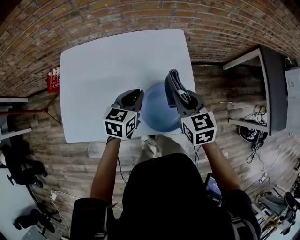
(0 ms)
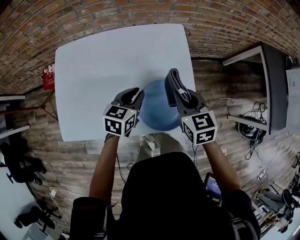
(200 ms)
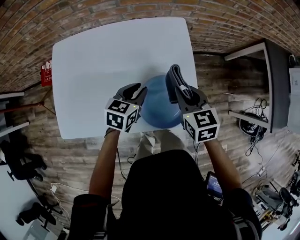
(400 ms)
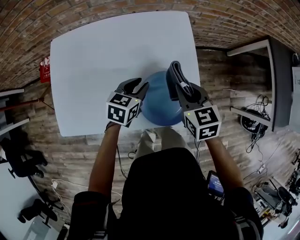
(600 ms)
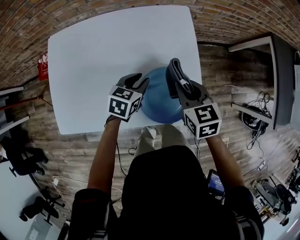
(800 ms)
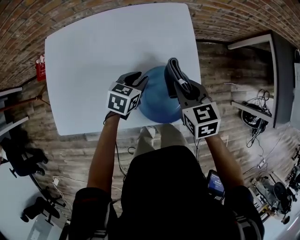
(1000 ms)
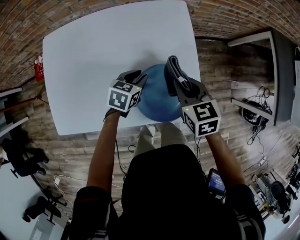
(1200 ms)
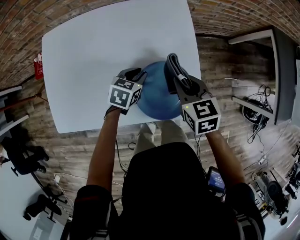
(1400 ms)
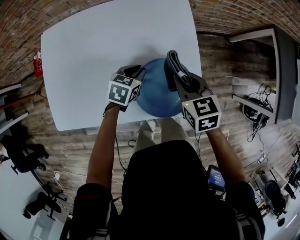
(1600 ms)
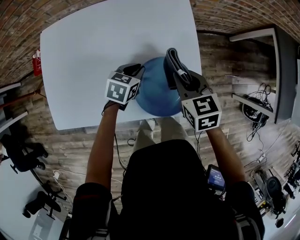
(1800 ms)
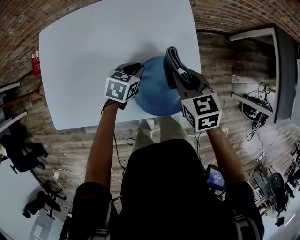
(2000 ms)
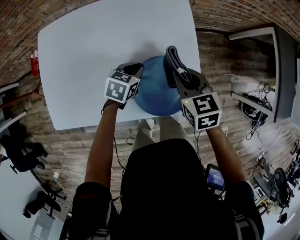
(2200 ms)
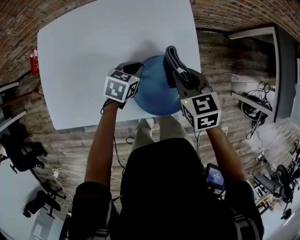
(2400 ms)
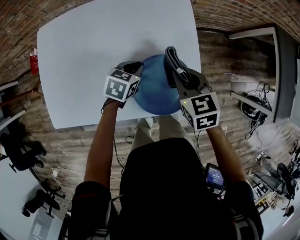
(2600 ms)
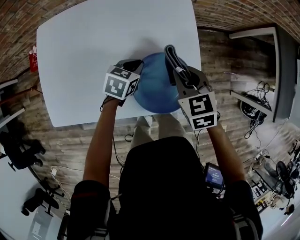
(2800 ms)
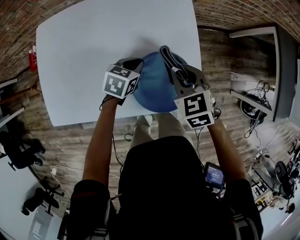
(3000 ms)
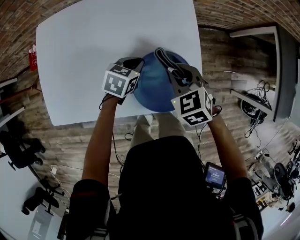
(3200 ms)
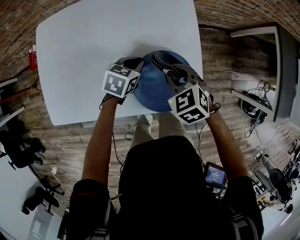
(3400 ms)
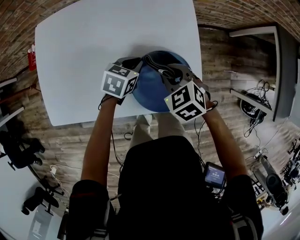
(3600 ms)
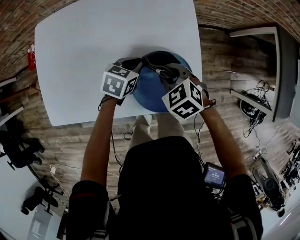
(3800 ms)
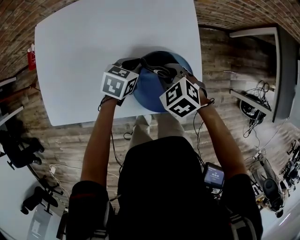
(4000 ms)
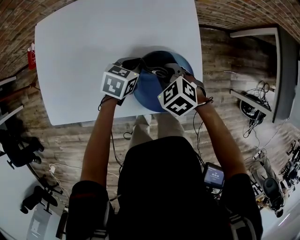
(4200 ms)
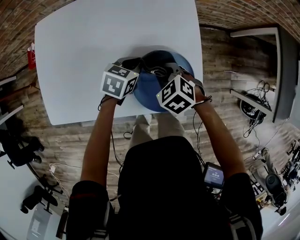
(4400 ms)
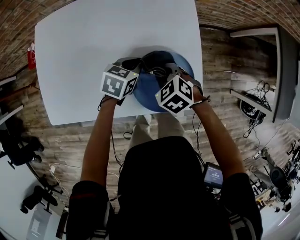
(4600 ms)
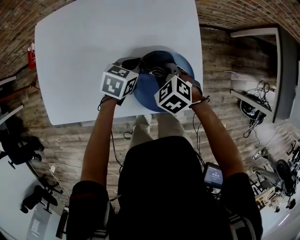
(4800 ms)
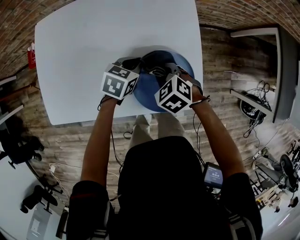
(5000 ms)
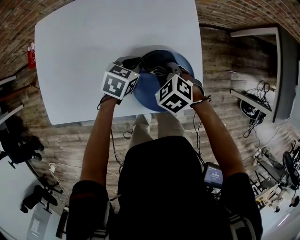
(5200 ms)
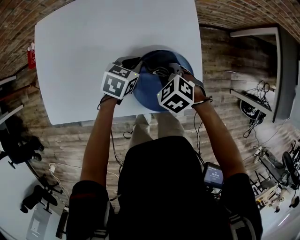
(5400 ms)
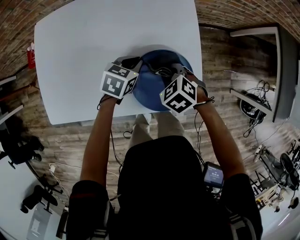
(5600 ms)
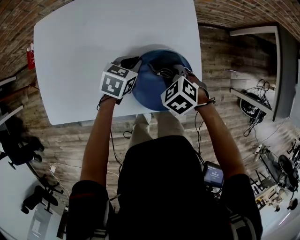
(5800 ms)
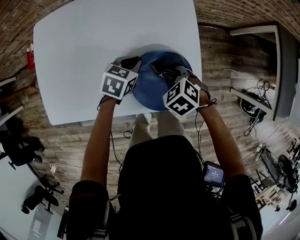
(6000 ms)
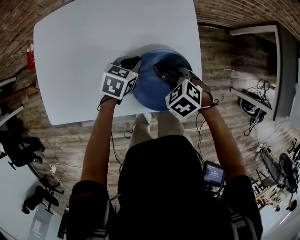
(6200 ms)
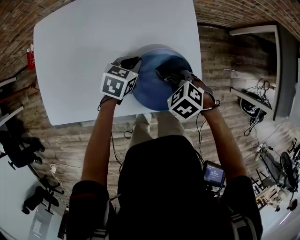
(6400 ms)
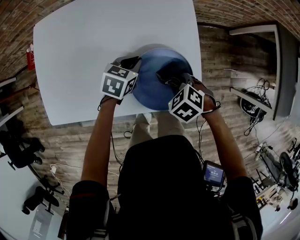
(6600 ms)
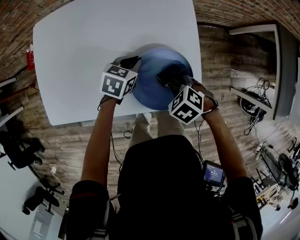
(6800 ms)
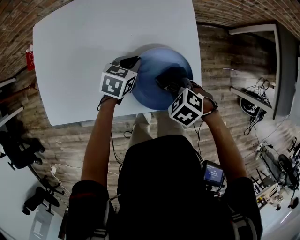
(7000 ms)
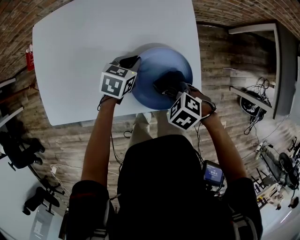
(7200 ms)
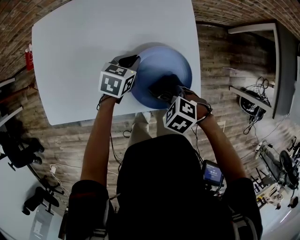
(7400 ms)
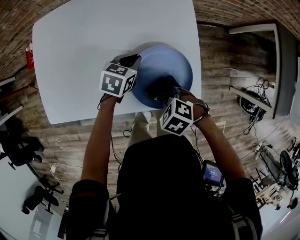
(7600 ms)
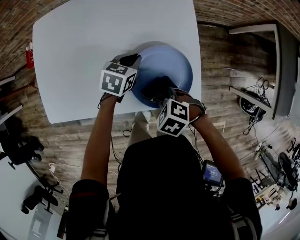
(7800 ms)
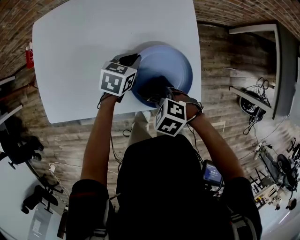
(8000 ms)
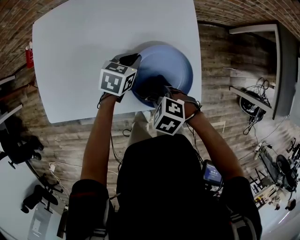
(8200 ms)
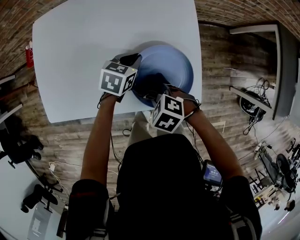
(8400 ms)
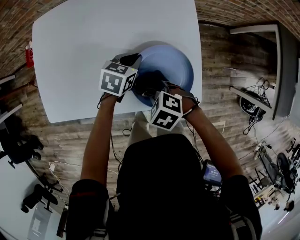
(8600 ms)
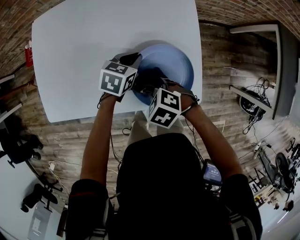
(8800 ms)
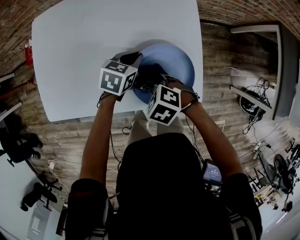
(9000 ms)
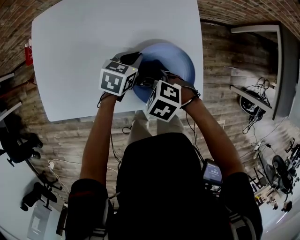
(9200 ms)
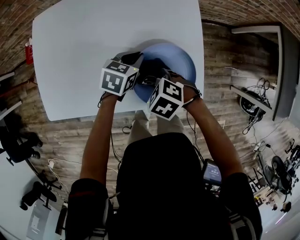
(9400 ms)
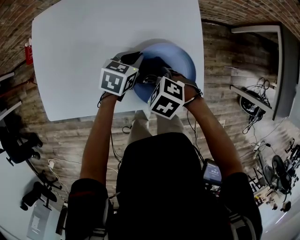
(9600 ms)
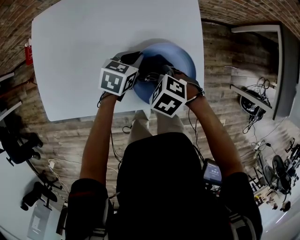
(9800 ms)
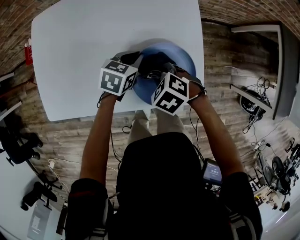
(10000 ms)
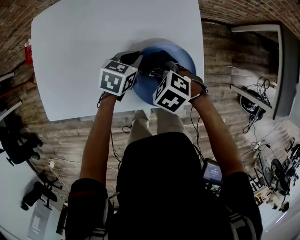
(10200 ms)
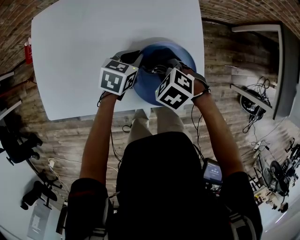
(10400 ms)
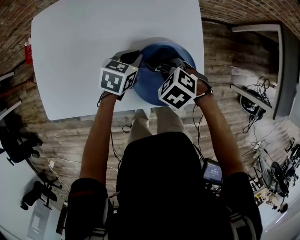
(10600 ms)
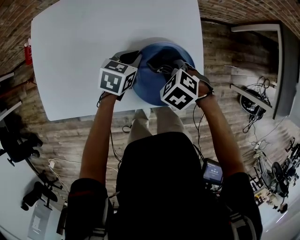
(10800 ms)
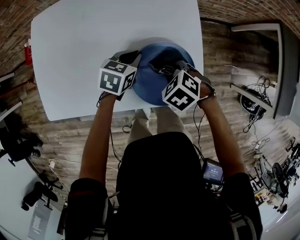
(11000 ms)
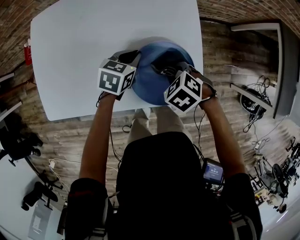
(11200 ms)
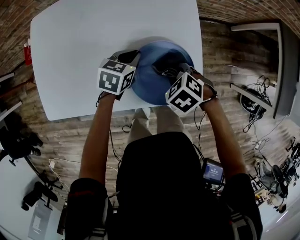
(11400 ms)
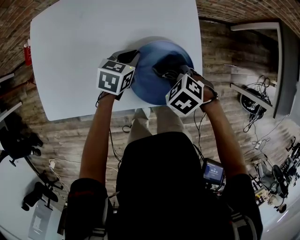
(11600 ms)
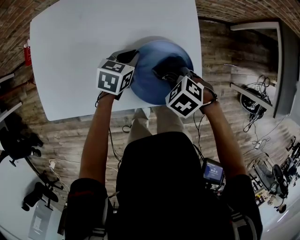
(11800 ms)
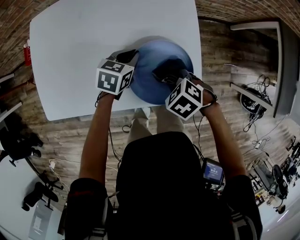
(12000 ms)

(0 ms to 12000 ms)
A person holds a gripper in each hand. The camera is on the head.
0 ms - 1600 ms: The right gripper moves downward, roughly 10 cm. Meanwhile the left gripper heads downward, covering about 15 cm.
1600 ms - 3000 ms: There are only small adjustments of the grippers.
3000 ms - 4400 ms: The right gripper shifts about 10 cm downward and to the left, and swivels about 20 degrees.
4400 ms - 6000 ms: The grippers make only small movements.
6000 ms - 7600 ms: The right gripper changes place by roughly 10 cm.
7600 ms - 9000 ms: The right gripper shifts by some 5 cm.
9000 ms - 10400 ms: The right gripper changes place by about 5 cm.
10400 ms - 12000 ms: The right gripper shifts by roughly 5 cm.

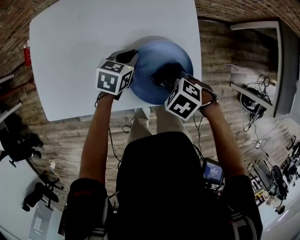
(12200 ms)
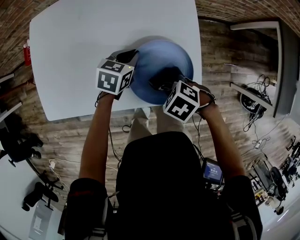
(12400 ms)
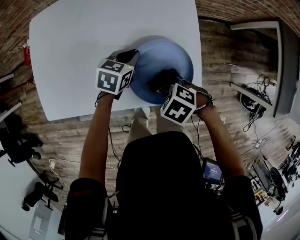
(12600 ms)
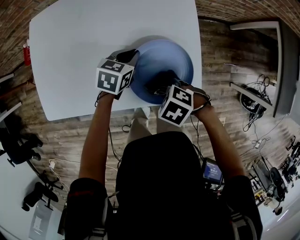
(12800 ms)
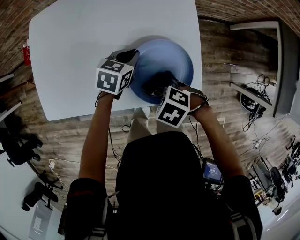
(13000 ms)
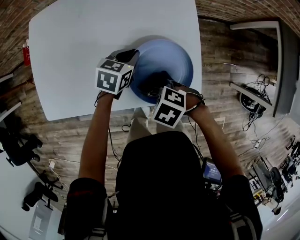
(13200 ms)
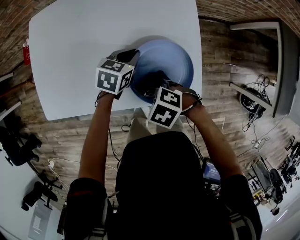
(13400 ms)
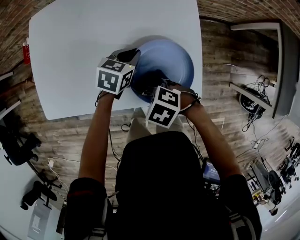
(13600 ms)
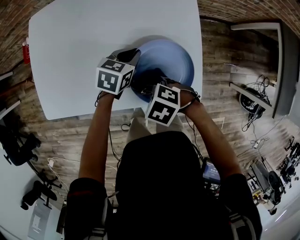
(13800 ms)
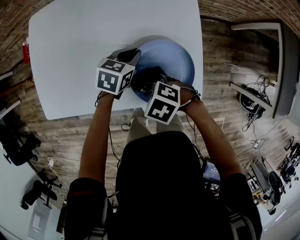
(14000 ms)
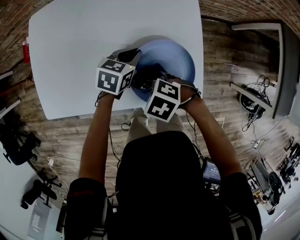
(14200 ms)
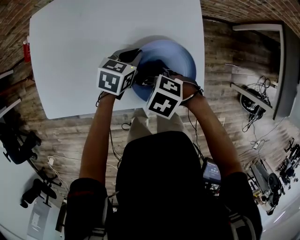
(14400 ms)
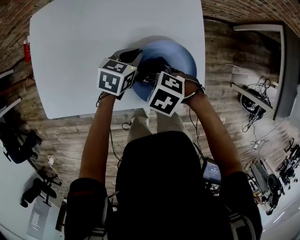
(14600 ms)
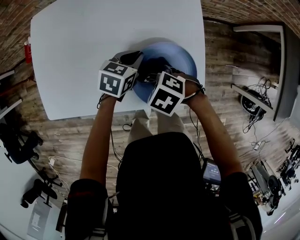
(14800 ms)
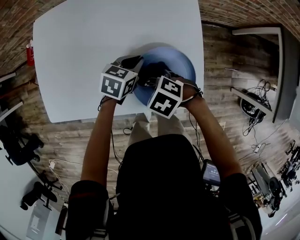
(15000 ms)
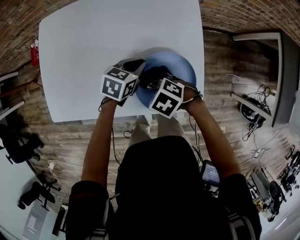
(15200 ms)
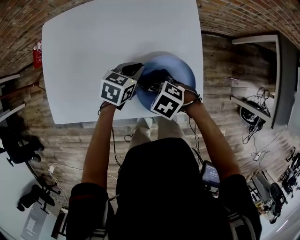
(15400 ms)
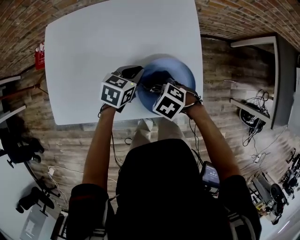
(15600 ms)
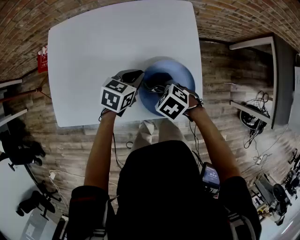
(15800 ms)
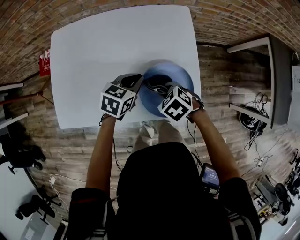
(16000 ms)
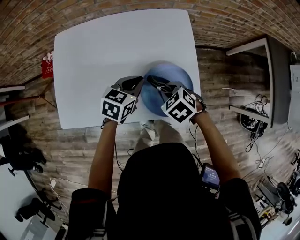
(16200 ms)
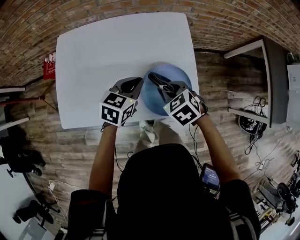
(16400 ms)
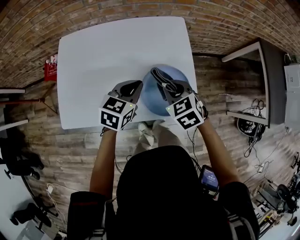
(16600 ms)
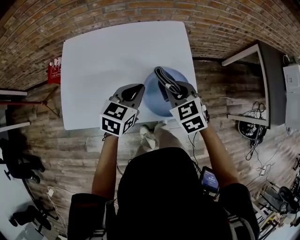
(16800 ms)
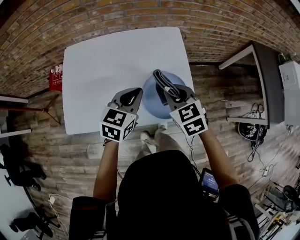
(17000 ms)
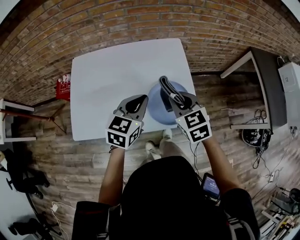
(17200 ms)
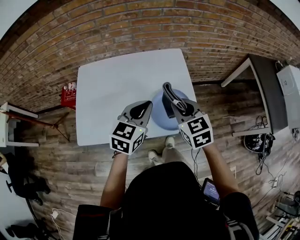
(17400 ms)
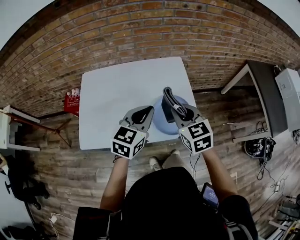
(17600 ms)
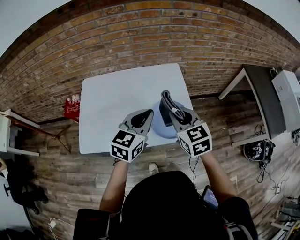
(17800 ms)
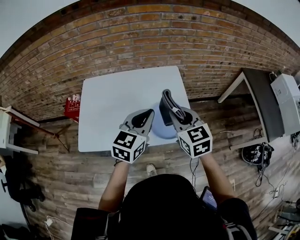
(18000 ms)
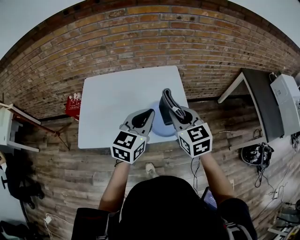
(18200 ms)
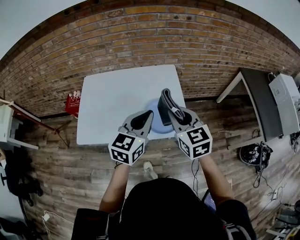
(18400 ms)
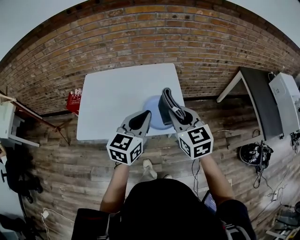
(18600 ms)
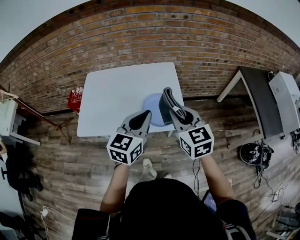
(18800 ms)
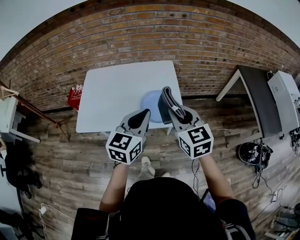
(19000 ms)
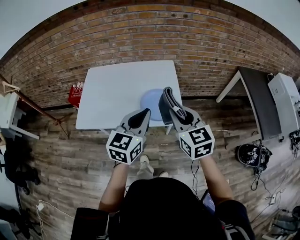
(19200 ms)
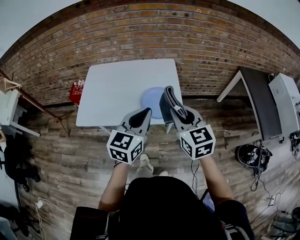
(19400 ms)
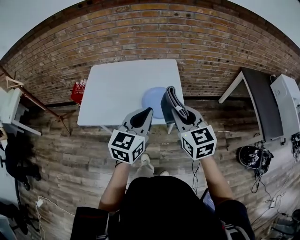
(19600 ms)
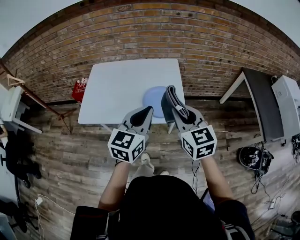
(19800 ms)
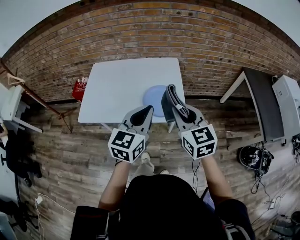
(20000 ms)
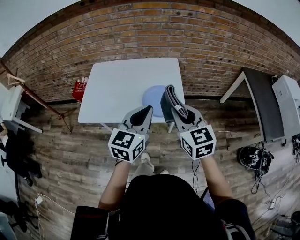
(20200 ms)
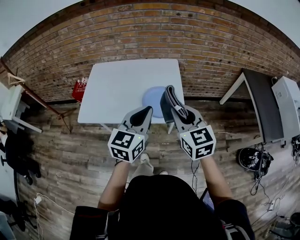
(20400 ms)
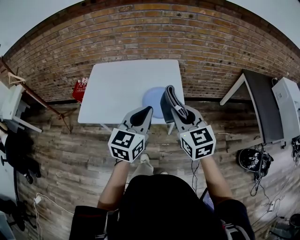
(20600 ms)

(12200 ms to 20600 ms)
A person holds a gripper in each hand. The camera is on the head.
12200 ms - 13600 ms: The right gripper ends up some 10 cm from where it was.
13600 ms - 15000 ms: The right gripper changes place by some 5 cm.
15000 ms - 16400 ms: Both grippers move upward, approximately 10 cm. The right gripper rotates some 30 degrees.
16400 ms - 17800 ms: The left gripper moves upward and backward, some 20 cm, and rotates some 20 degrees. The right gripper travels upward by about 20 cm, and angles its fingers upward, by approximately 30 degrees.
17800 ms - 19200 ms: The right gripper heads backward, to the right and upward, covering about 15 cm; the left gripper goes roughly 15 cm backward and to the right.
19200 ms - 20600 ms: The grippers stay close to where they were, moving slightly.

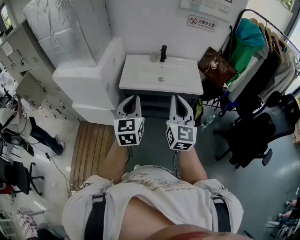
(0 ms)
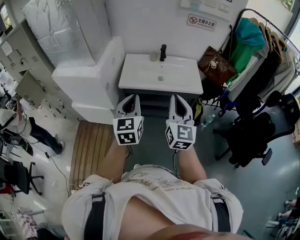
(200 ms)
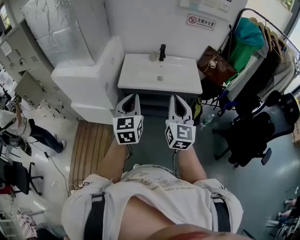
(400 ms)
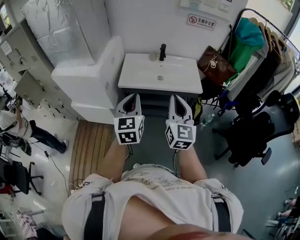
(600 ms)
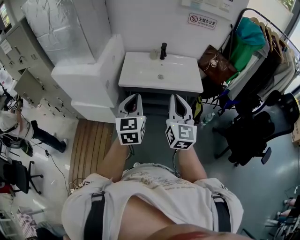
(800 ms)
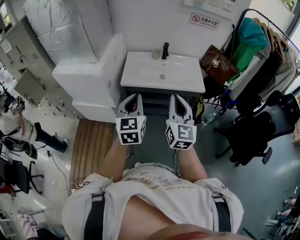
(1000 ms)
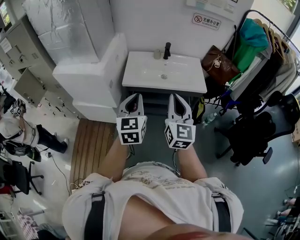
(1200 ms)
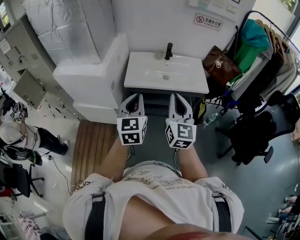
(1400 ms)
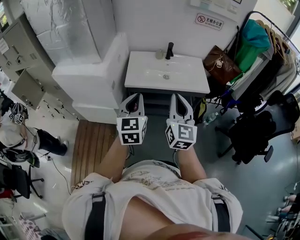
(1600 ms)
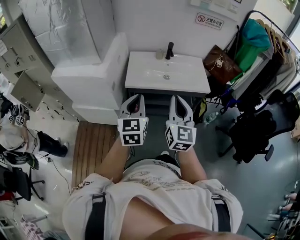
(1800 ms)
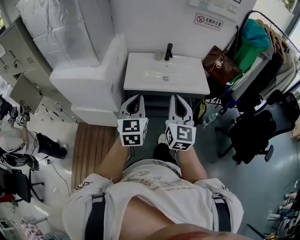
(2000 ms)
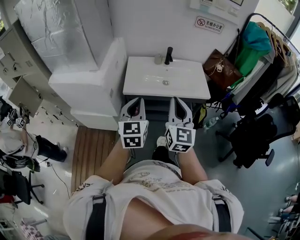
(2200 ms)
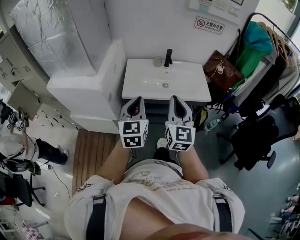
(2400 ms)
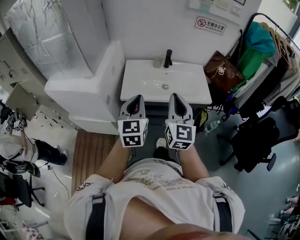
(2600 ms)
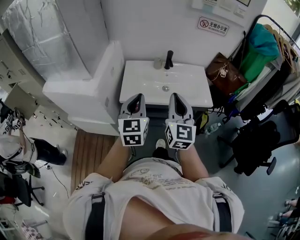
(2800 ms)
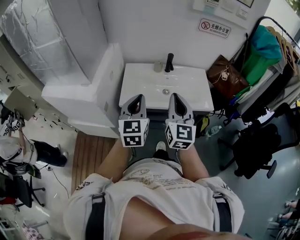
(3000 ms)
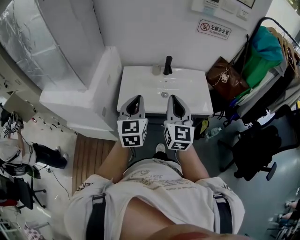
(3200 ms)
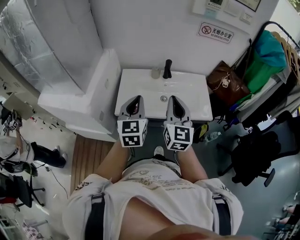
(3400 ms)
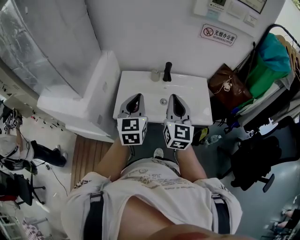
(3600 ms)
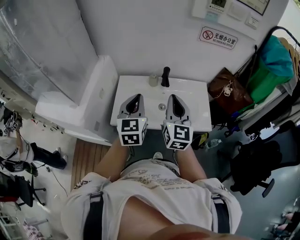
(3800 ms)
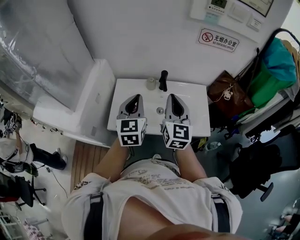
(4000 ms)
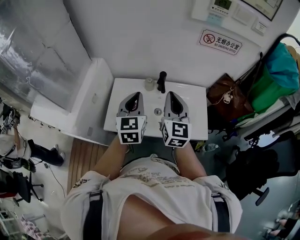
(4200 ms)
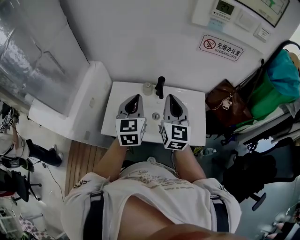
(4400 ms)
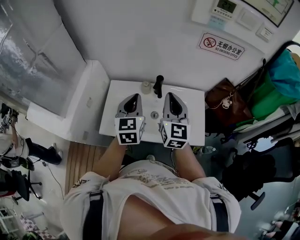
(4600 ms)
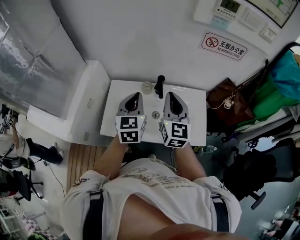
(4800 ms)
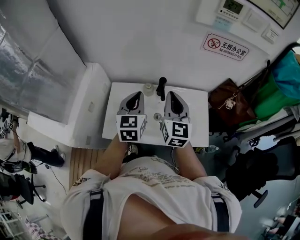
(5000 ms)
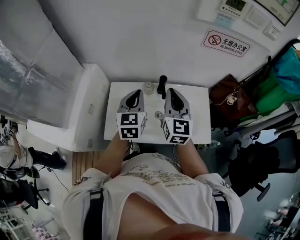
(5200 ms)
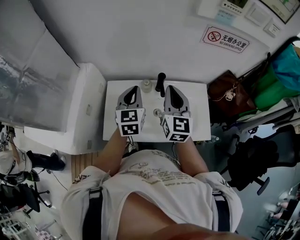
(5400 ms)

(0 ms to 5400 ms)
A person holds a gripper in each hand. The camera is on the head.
0 ms - 1400 ms: The left gripper changes place by roughly 5 cm; the right gripper heads to the left, covering about 5 cm.
1400 ms - 2800 ms: The grippers both shift forward by roughly 15 cm.
2800 ms - 4000 ms: The grippers both shift forward by approximately 20 cm.
4000 ms - 5400 ms: Both grippers move forward, approximately 15 cm.
